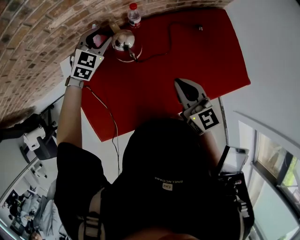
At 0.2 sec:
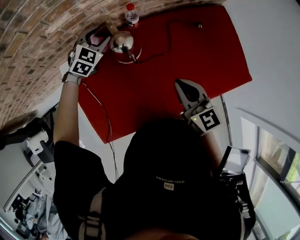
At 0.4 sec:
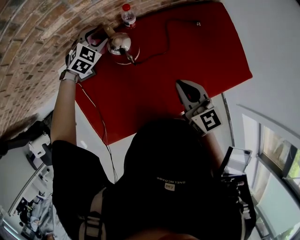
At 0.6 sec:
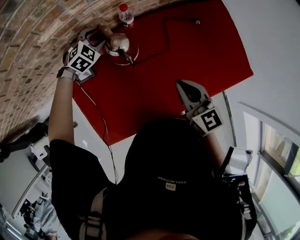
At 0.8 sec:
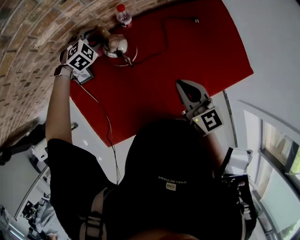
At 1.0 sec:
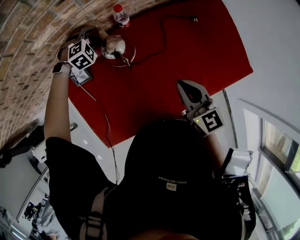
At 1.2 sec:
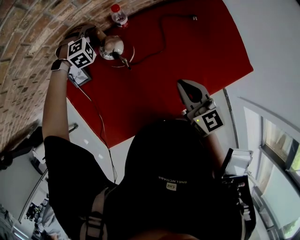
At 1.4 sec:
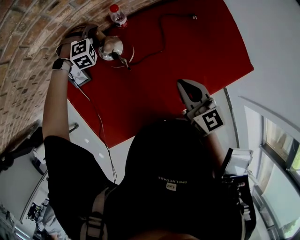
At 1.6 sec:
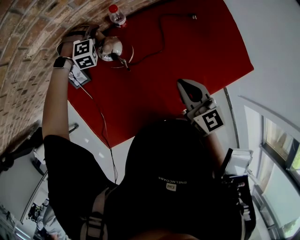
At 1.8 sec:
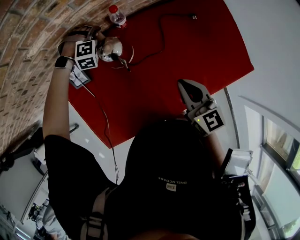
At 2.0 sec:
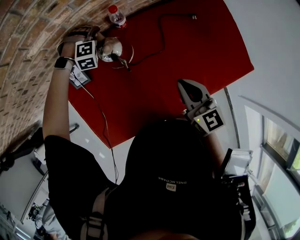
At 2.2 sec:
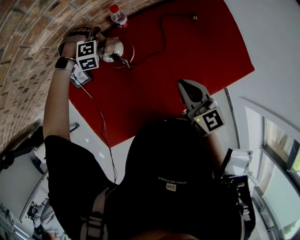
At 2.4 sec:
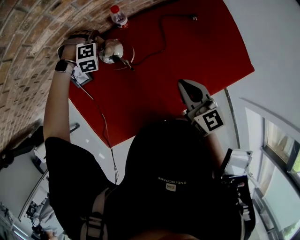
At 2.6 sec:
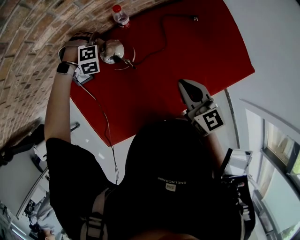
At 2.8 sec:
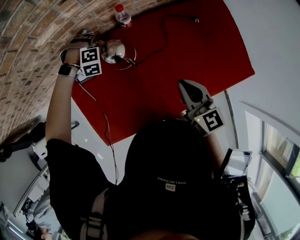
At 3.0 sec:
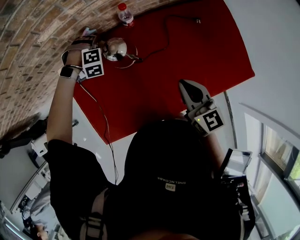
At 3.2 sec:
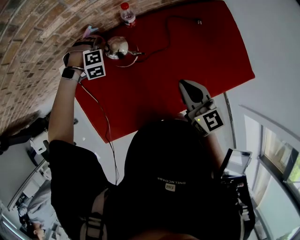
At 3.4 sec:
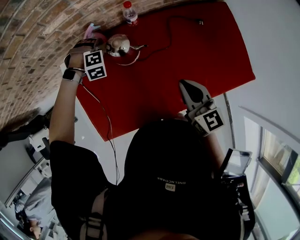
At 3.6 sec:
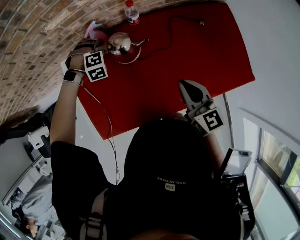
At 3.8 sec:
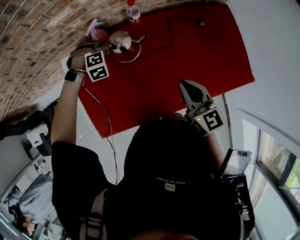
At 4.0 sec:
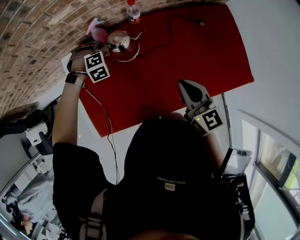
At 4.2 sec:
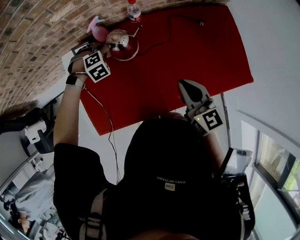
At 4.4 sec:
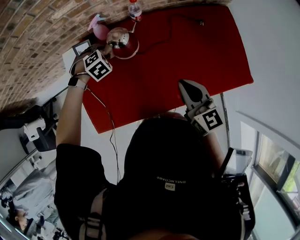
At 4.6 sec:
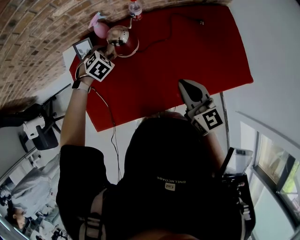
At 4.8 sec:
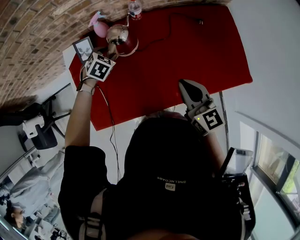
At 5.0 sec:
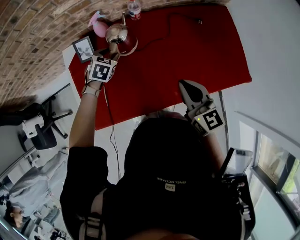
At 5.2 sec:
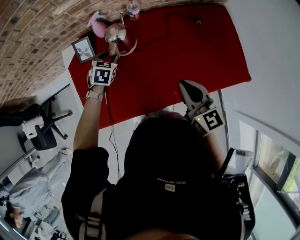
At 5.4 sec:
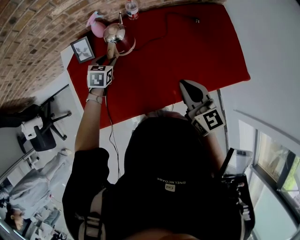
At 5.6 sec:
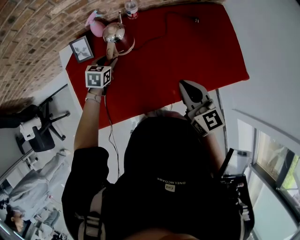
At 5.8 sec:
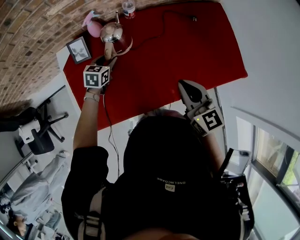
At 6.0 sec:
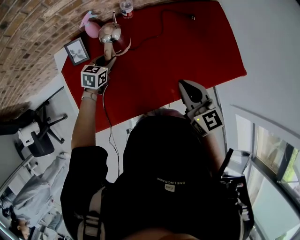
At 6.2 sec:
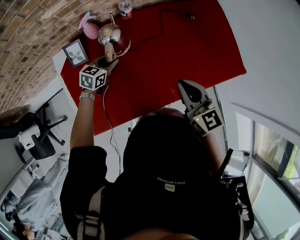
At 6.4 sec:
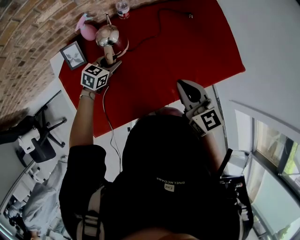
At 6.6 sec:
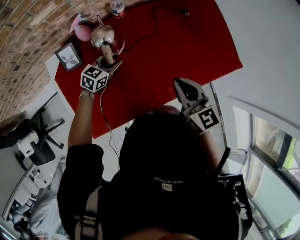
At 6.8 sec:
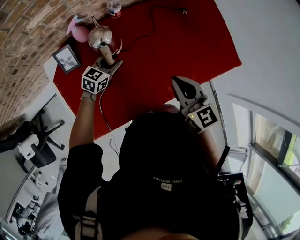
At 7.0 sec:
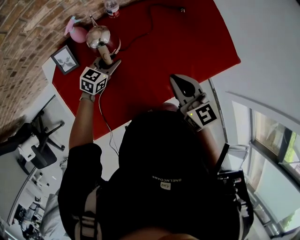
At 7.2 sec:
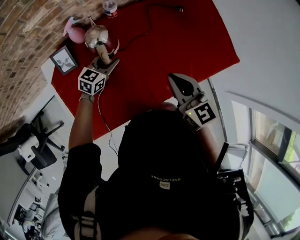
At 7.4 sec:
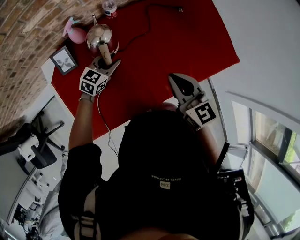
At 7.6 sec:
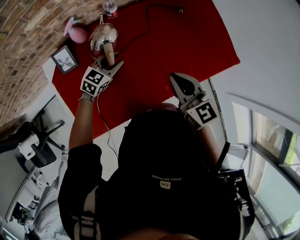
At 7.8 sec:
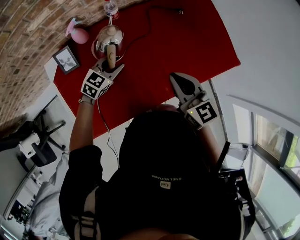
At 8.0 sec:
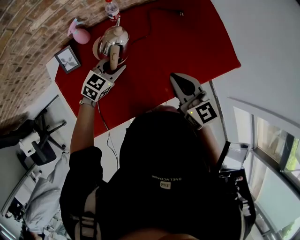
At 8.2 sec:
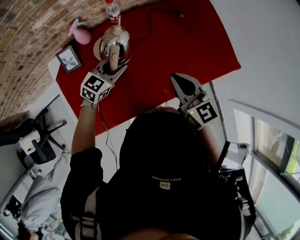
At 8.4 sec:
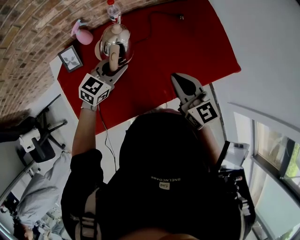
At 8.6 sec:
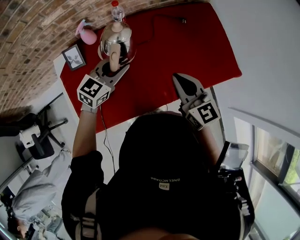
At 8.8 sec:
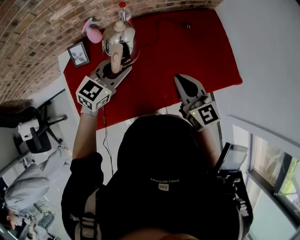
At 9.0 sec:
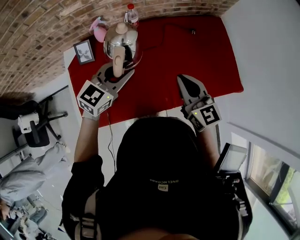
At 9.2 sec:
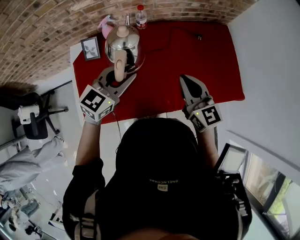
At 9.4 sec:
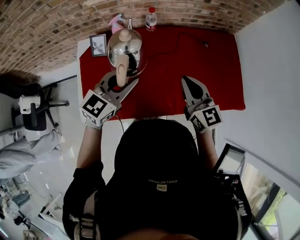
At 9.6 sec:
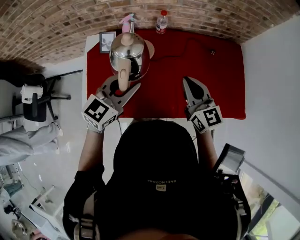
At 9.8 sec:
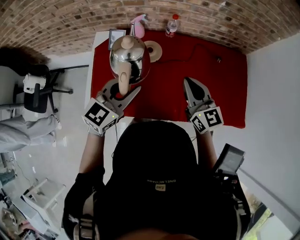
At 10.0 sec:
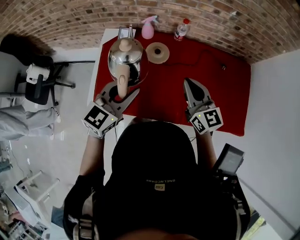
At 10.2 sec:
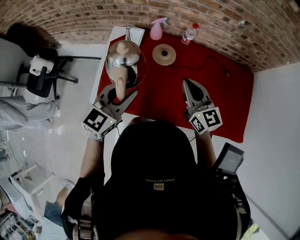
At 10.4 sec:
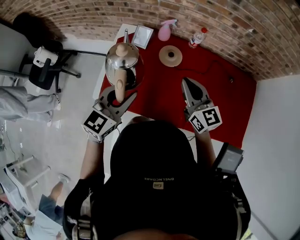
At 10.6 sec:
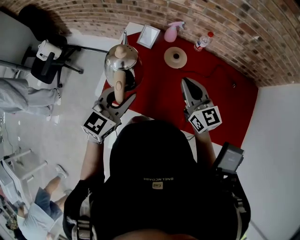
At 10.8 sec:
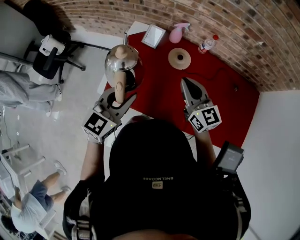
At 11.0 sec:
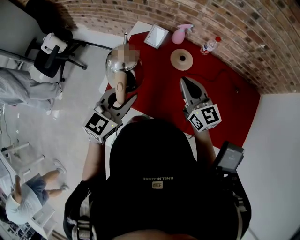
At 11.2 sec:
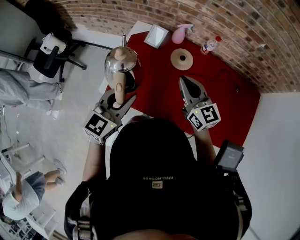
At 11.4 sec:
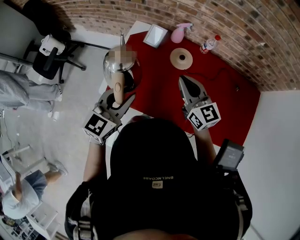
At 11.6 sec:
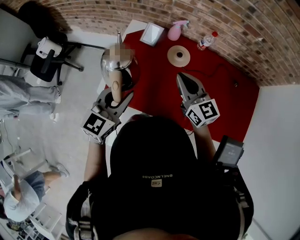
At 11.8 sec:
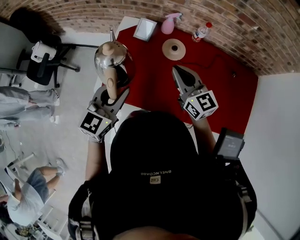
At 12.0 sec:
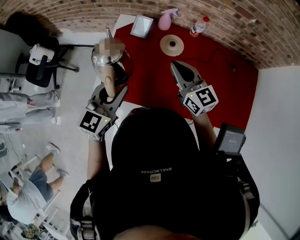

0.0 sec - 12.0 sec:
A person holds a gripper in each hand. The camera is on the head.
0.0 sec - 1.6 sec: The left gripper travels downward and forward by approximately 15 cm, and rolls clockwise, seen from behind, by about 50 degrees.
1.6 sec - 3.0 sec: The left gripper is displaced backward by roughly 5 cm.
3.0 sec - 4.4 sec: The left gripper moves backward, roughly 10 cm, and changes its angle by approximately 40 degrees.
4.4 sec - 6.0 sec: The left gripper changes place by about 5 cm, and swivels some 60 degrees.
6.0 sec - 7.6 sec: The left gripper heads to the right, covering approximately 10 cm, and changes its angle by some 30 degrees.
7.6 sec - 9.0 sec: The right gripper changes place by approximately 5 cm, while the left gripper shifts approximately 20 cm upward.
9.0 sec - 10.4 sec: The left gripper ends up approximately 20 cm from where it was, and rotates some 40 degrees. Meanwhile the right gripper shifts by approximately 15 cm, and changes its angle by approximately 30 degrees.
10.4 sec - 12.0 sec: The two grippers go roughly 5 cm to the left.

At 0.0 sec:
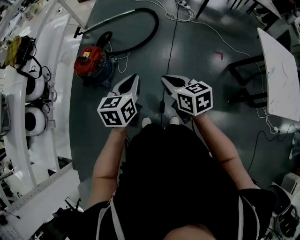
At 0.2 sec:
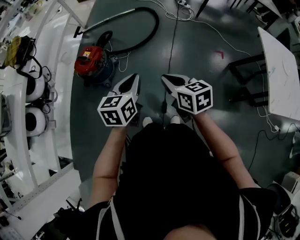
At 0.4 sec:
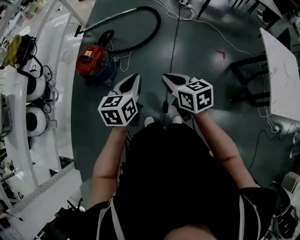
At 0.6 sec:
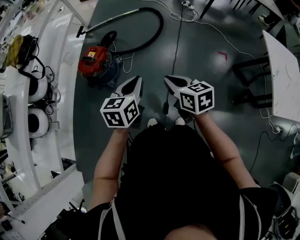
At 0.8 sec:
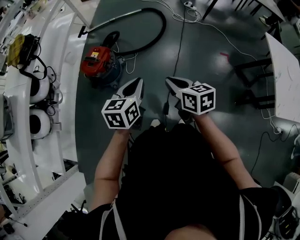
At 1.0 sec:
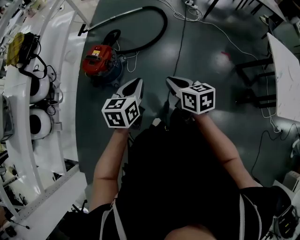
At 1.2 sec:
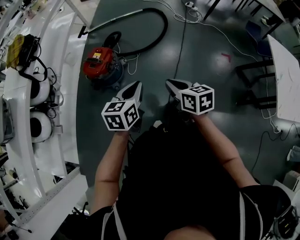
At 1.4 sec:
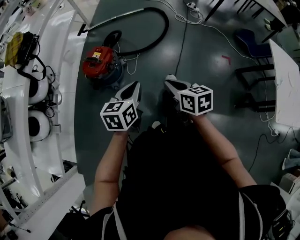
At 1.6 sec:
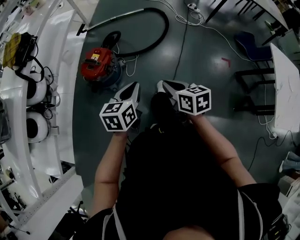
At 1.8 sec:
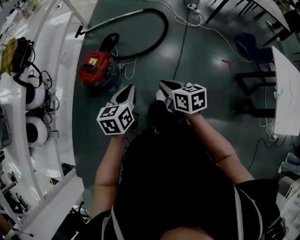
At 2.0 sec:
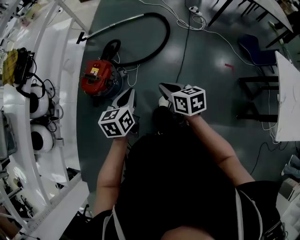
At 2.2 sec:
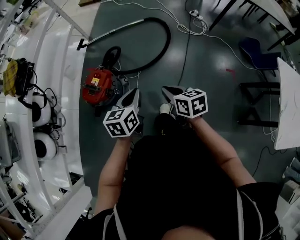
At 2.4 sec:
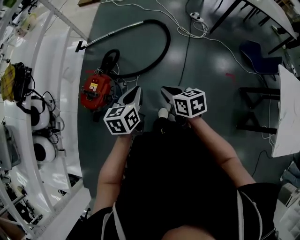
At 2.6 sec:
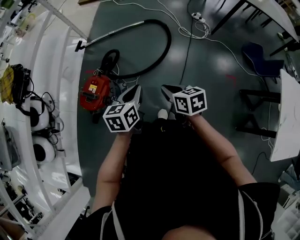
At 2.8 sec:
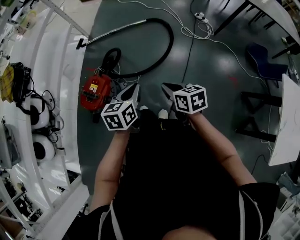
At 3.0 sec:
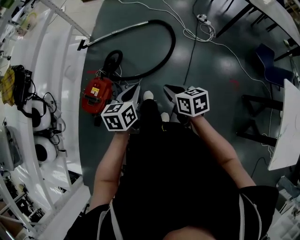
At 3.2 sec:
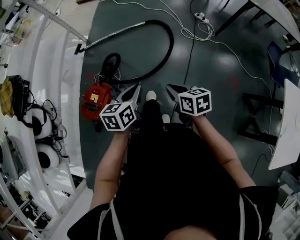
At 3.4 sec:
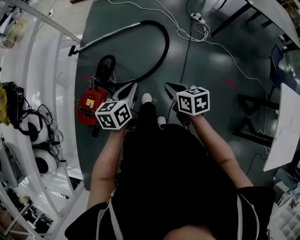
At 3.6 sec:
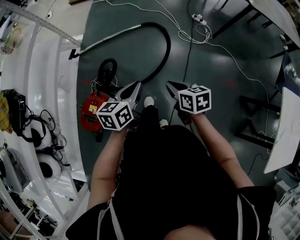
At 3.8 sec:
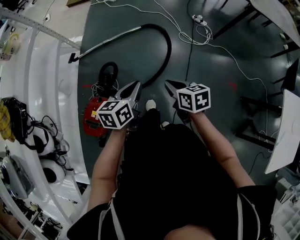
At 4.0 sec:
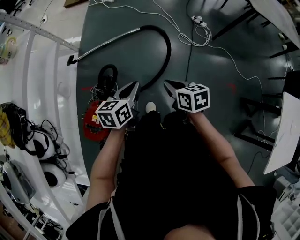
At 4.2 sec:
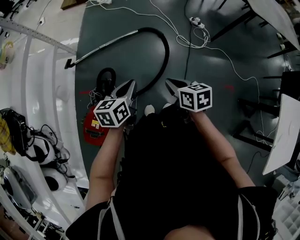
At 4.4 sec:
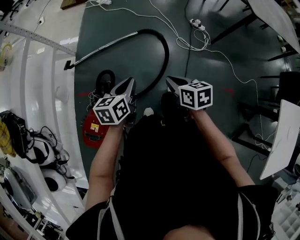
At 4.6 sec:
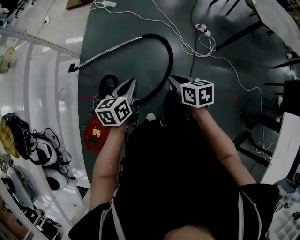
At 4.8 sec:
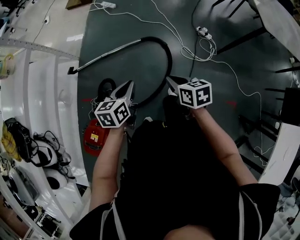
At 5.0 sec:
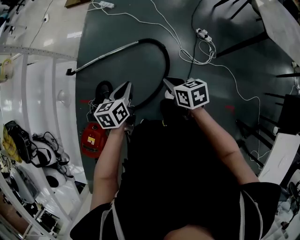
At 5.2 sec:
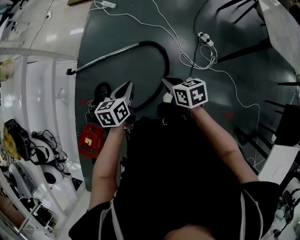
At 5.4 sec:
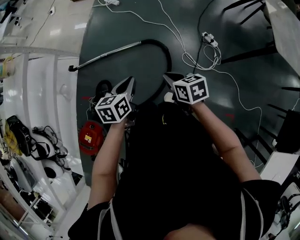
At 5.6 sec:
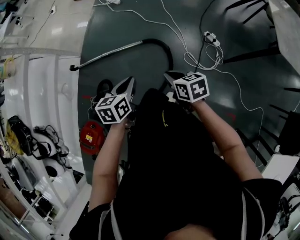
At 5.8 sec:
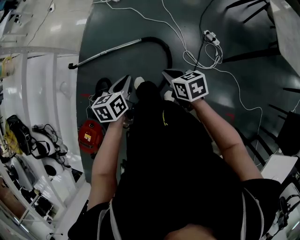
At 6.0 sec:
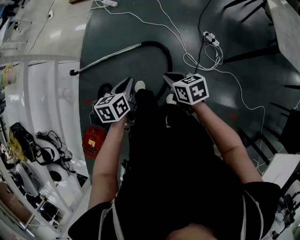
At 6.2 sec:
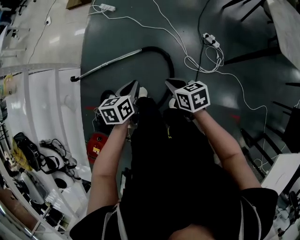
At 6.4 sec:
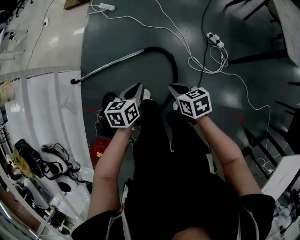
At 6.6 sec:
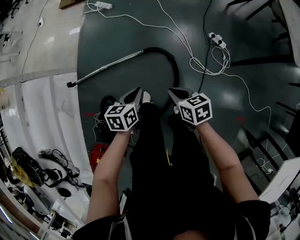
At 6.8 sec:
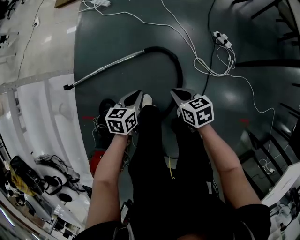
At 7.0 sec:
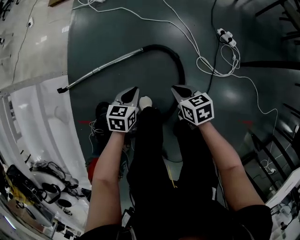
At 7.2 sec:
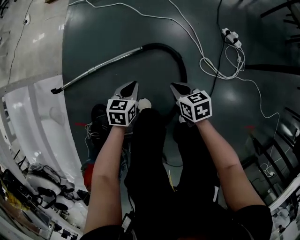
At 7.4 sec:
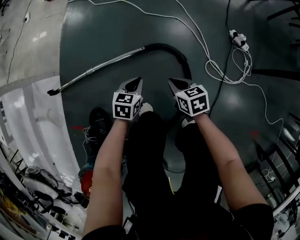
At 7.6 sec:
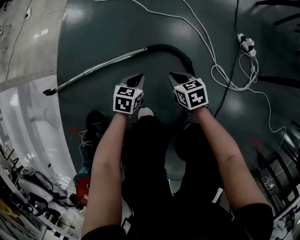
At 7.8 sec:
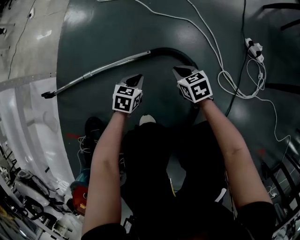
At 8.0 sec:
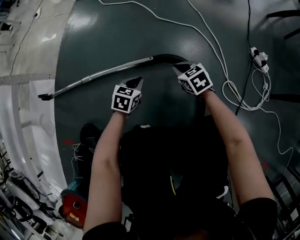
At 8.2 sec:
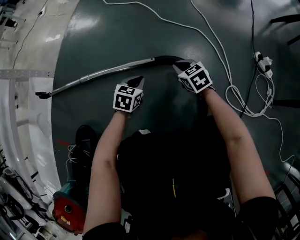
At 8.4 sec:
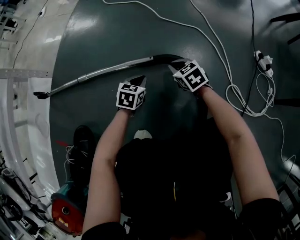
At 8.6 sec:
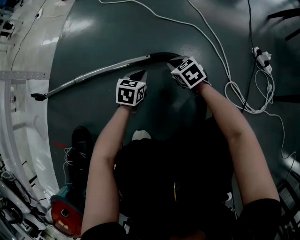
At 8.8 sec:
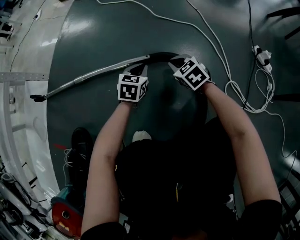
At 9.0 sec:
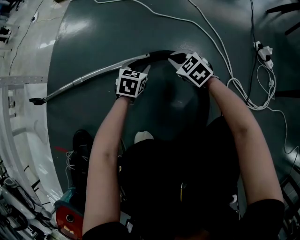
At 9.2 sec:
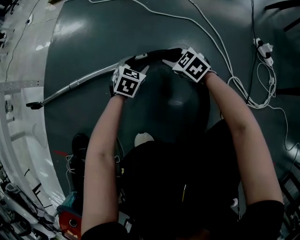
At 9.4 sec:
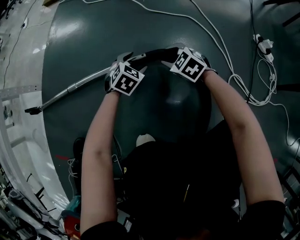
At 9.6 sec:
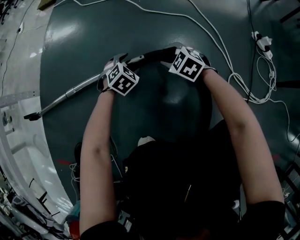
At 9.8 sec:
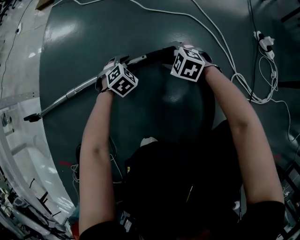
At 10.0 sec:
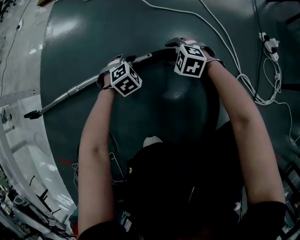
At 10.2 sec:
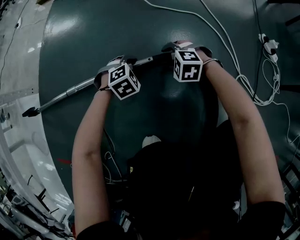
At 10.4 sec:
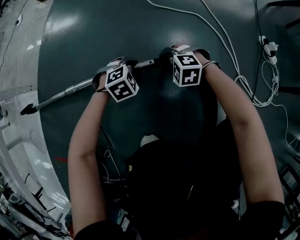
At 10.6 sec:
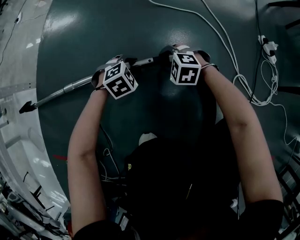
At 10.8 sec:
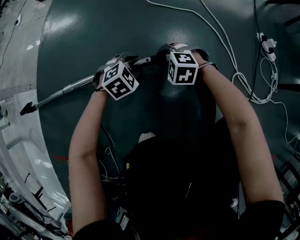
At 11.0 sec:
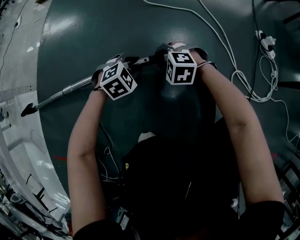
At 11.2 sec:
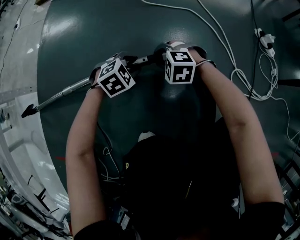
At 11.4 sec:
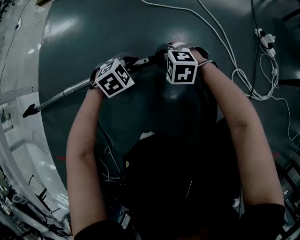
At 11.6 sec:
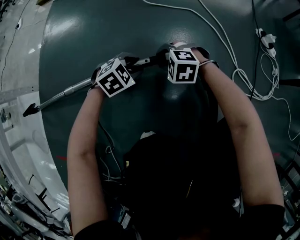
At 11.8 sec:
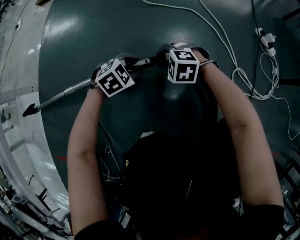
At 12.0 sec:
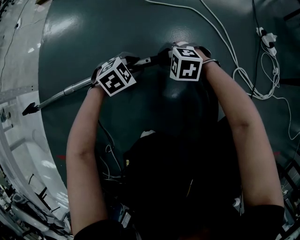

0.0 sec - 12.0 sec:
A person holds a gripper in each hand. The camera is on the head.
0.0 sec - 1.6 sec: The right gripper shifts approximately 15 cm forward, to the left and downward. Meanwhile the left gripper moves to the left, forward and downward, about 15 cm.
1.6 sec - 3.0 sec: The grippers both shift forward by roughly 30 cm.
3.0 sec - 4.4 sec: Both grippers travel together forward, roughly 30 cm.
4.4 sec - 6.0 sec: Both grippers travel together forward and to the right, approximately 30 cm.
6.0 sec - 7.6 sec: The right gripper moves downward and forward, roughly 50 cm. Meanwhile the left gripper goes roughly 50 cm downward, and rotates some 30 degrees.
7.6 sec - 9.0 sec: Both grippers move downward and forward, some 20 cm. The right gripper rotates roughly 40 degrees. Meanwhile the left gripper opens up.
9.0 sec - 10.4 sec: The left gripper rotates around the line of its fingers by roughly 50 degrees, clockwise from behind, while the right gripper shifts some 10 cm downward and to the left, turns by roughly 40 degrees, and opens its fingers.
10.4 sec - 12.0 sec: The grippers stay close to where they were, moving slightly.
